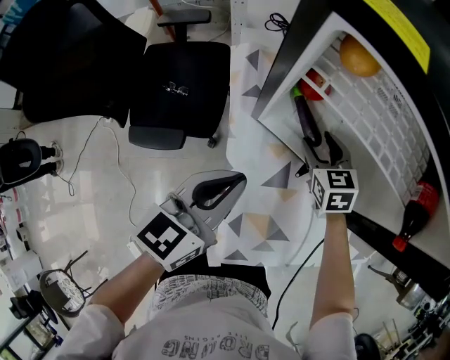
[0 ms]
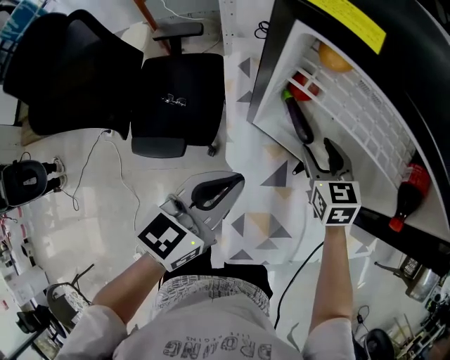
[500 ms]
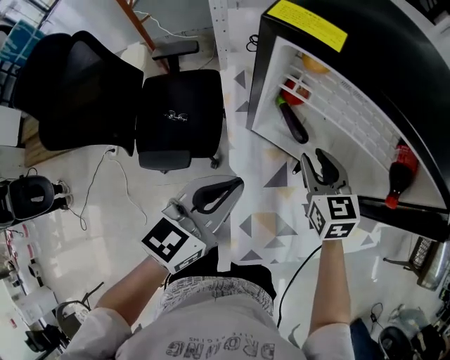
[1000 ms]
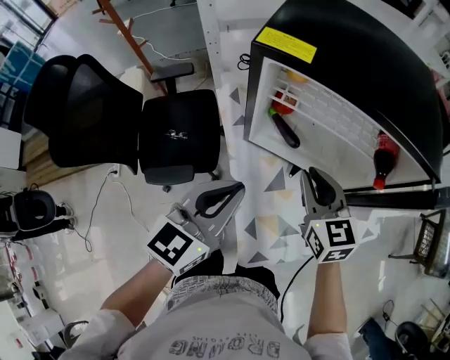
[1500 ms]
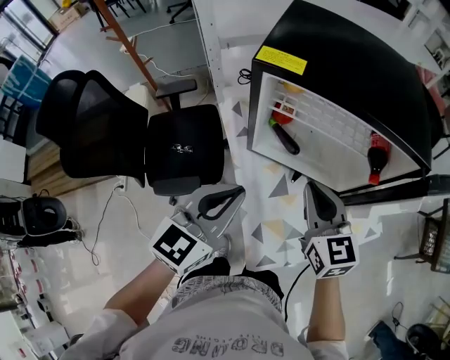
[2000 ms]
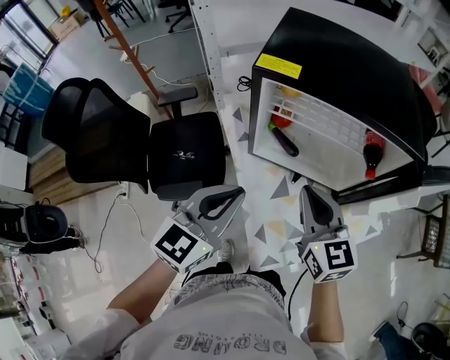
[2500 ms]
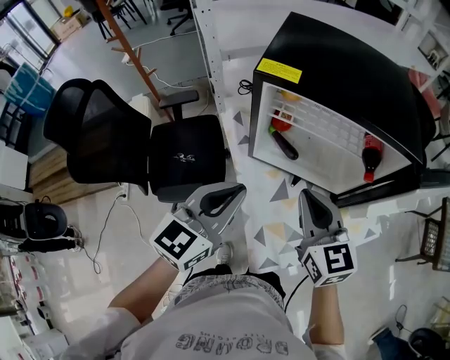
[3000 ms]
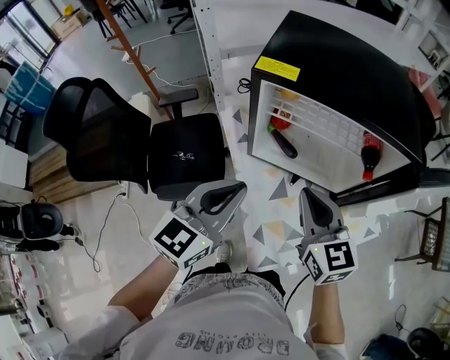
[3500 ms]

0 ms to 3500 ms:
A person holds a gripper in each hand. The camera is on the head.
0 ms to 2000 ms: The left gripper is displaced upward and backward by about 15 cm, and turns by some 20 degrees. The right gripper travels upward and backward by about 30 cm, turns by some 30 degrees, and closes.
2000 ms to 3500 ms: The grippers move only a little.

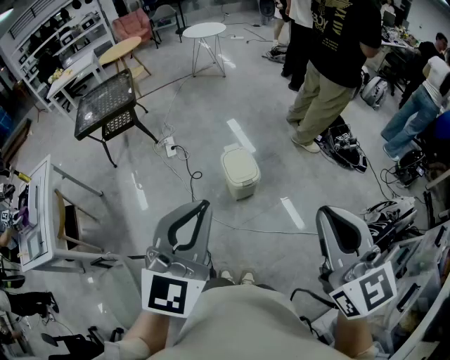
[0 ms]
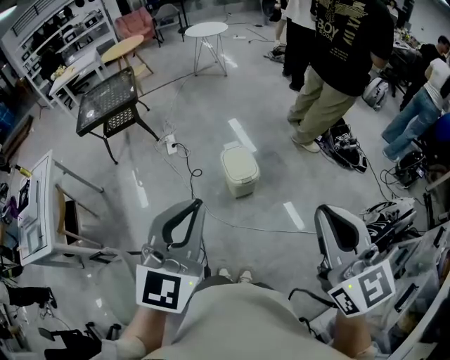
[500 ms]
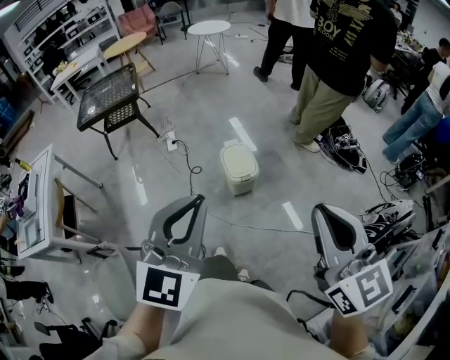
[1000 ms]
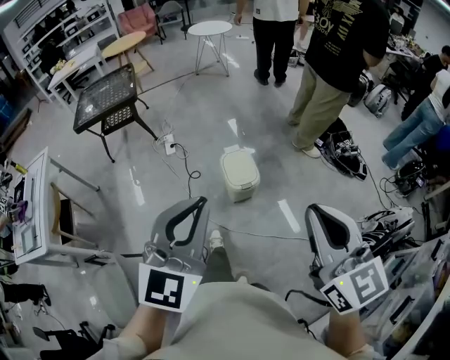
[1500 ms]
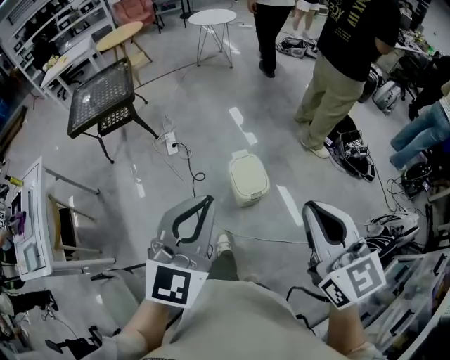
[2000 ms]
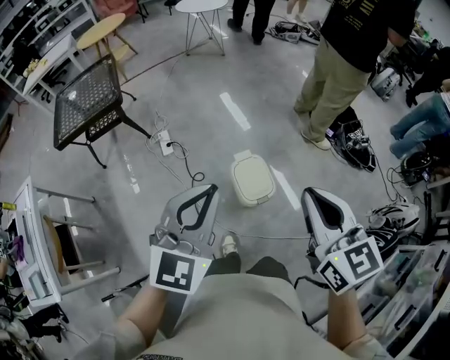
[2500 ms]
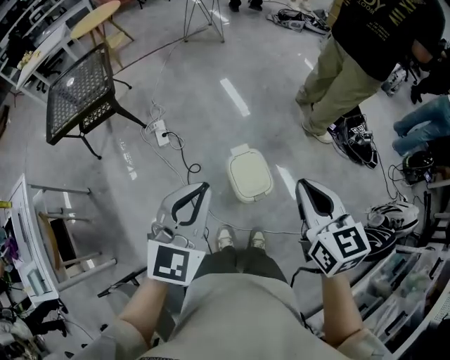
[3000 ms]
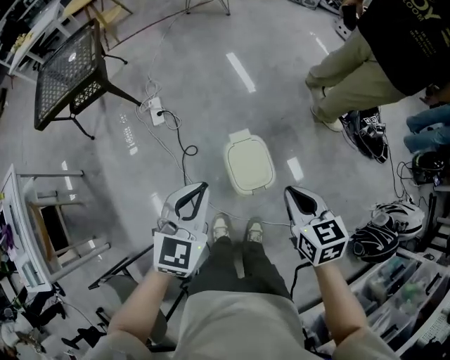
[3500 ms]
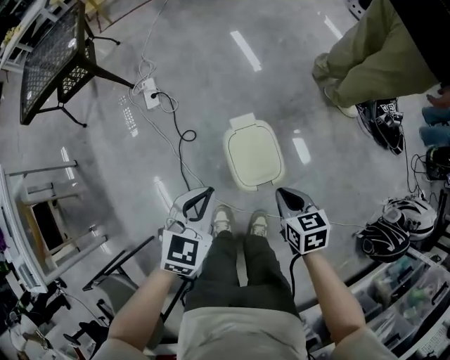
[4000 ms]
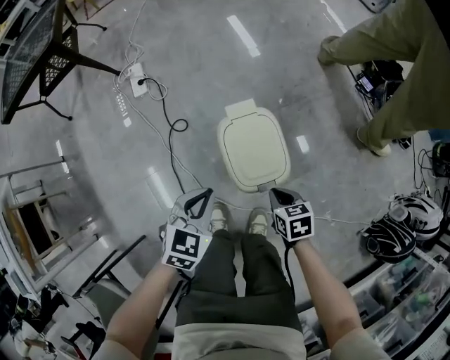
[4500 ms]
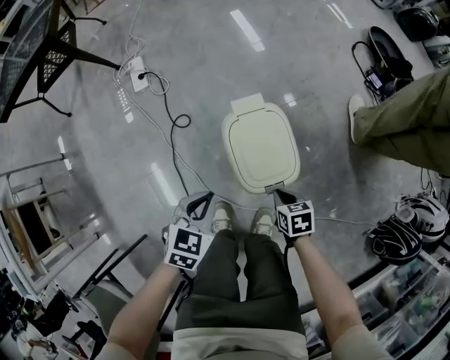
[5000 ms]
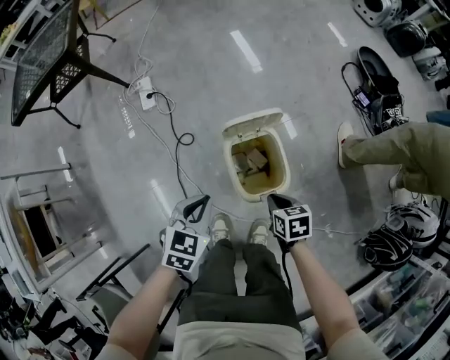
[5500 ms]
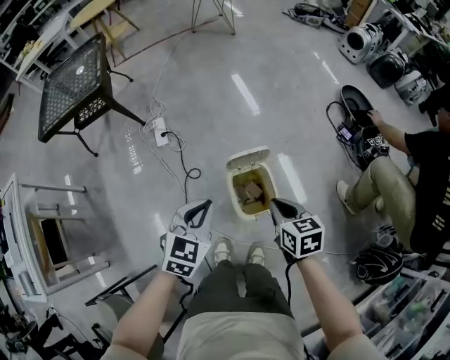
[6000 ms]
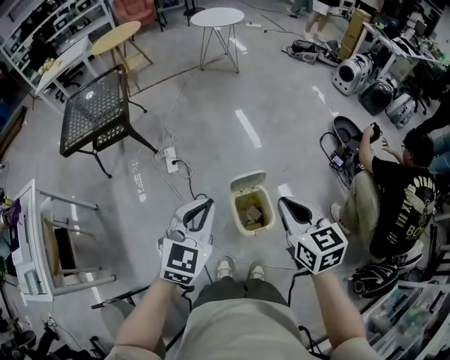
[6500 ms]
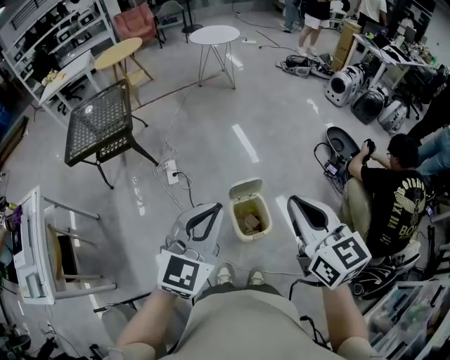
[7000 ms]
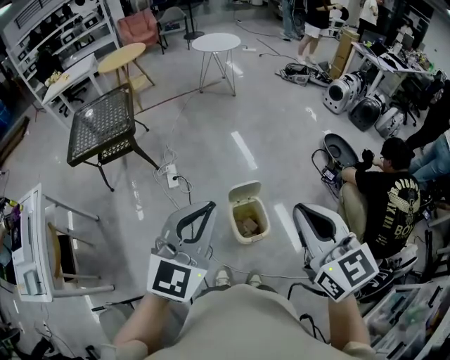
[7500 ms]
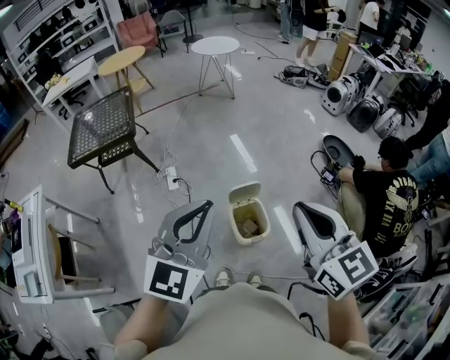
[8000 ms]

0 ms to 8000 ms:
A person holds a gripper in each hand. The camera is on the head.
0 ms to 2000 ms: Both grippers move forward, roughly 20 cm.
2000 ms to 4000 ms: Both grippers move downward and forward, some 50 cm. The right gripper angles its fingers downward, by about 40 degrees; the left gripper turns by some 30 degrees.
4000 ms to 6000 ms: The left gripper travels downward and back again, roughly 20 cm each way. The right gripper goes downward and returns, roughly 25 cm each way.
6000 ms to 8000 ms: The two grippers go roughly 40 cm upward. The left gripper swivels approximately 30 degrees, while the right gripper points its fingers some 30 degrees further upward.
